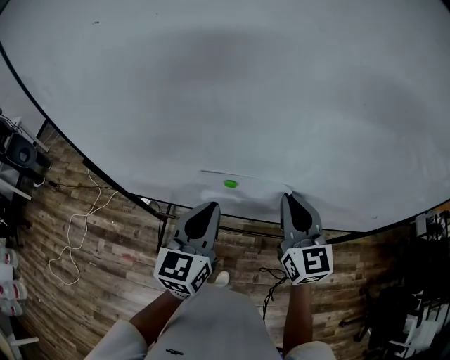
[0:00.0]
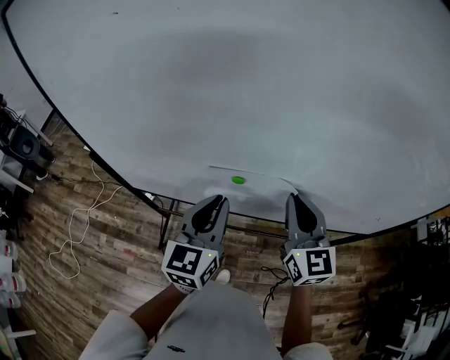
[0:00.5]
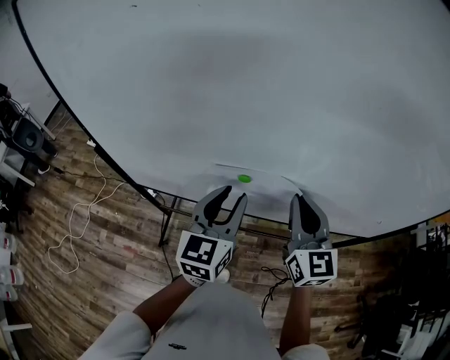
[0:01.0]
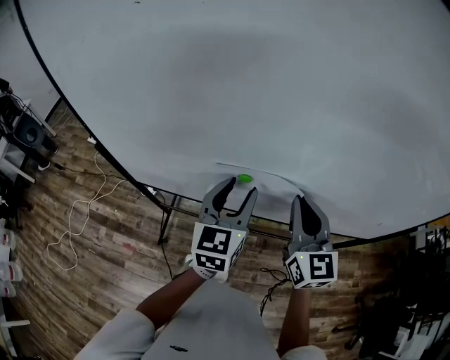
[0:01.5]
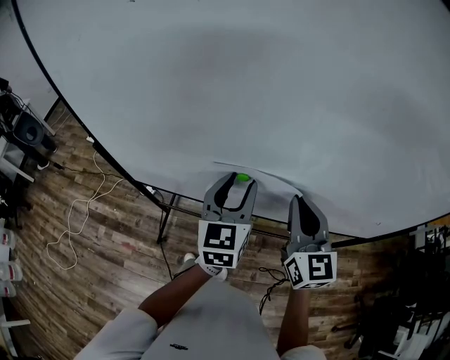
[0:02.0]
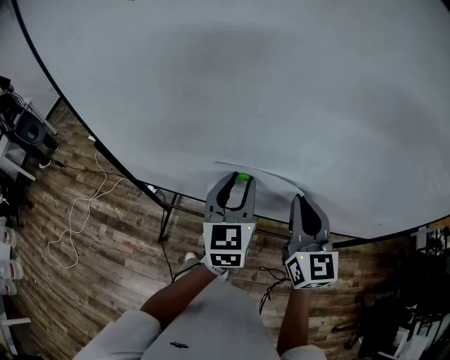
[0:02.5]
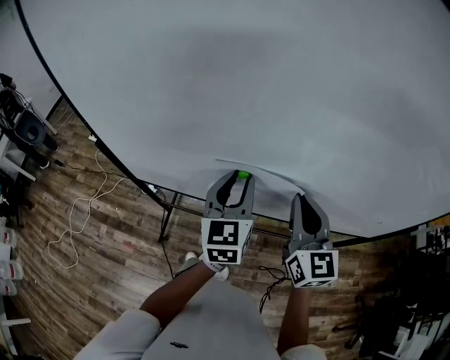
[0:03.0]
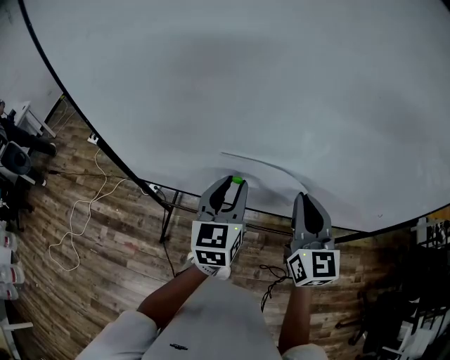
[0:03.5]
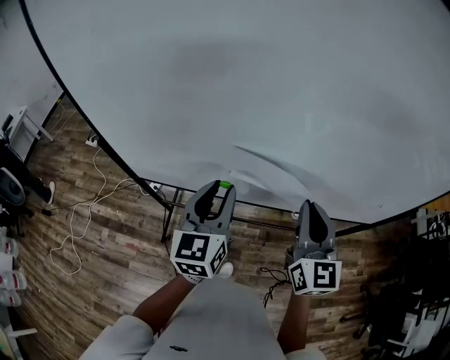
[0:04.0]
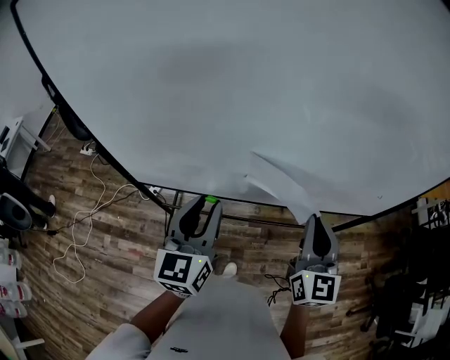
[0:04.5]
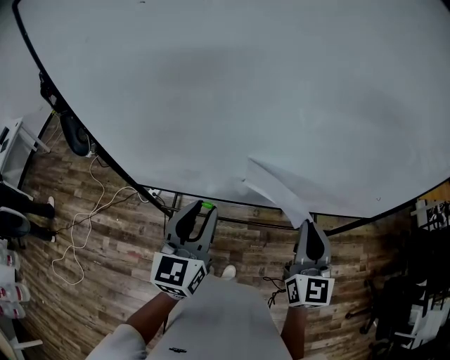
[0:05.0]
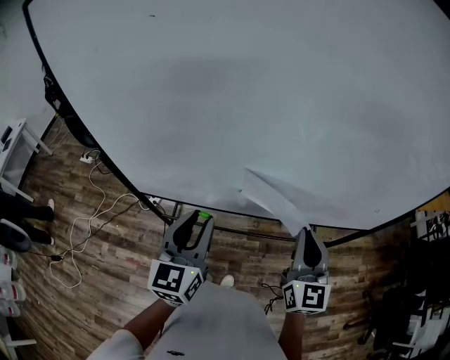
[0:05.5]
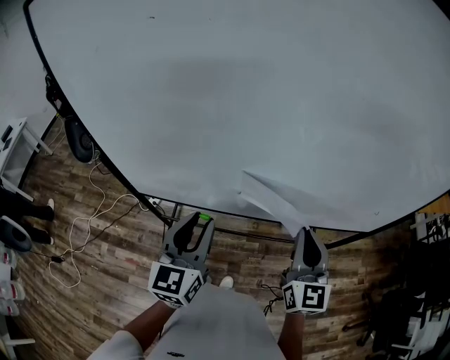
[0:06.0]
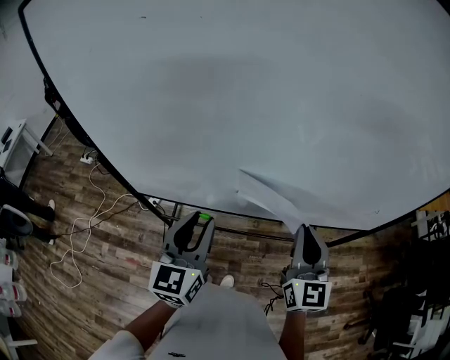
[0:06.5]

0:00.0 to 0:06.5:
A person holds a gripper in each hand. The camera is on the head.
0:00.0 to 0:02.0: The left gripper shifts by approximately 5 cm, and opens up.
0:02.0 to 0:04.5: The left gripper heads backward and to the left, covering about 15 cm, while the right gripper goes roughly 10 cm backward.
0:04.5 to 0:06.5: The grippers stay close to where they were, moving slightly.

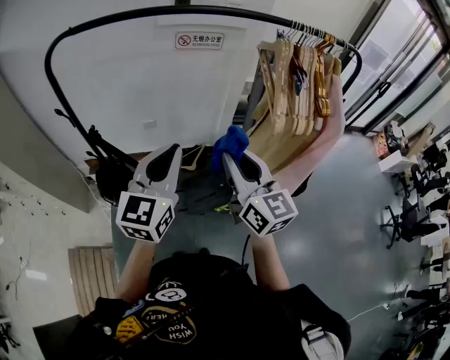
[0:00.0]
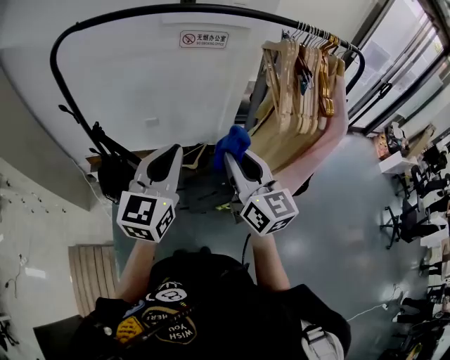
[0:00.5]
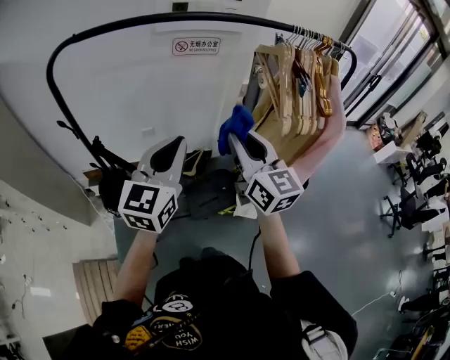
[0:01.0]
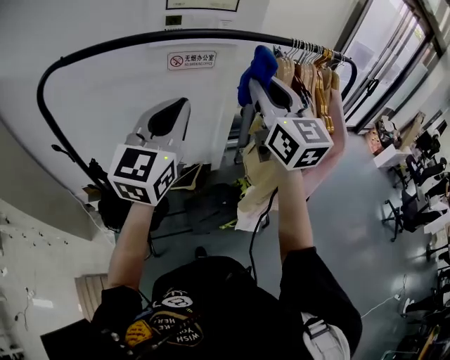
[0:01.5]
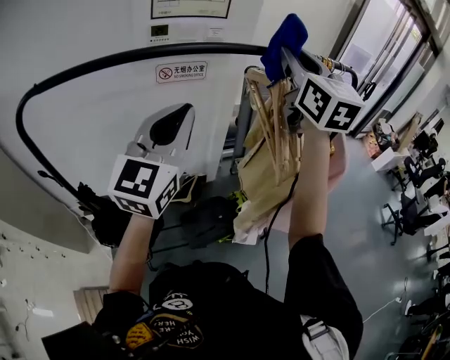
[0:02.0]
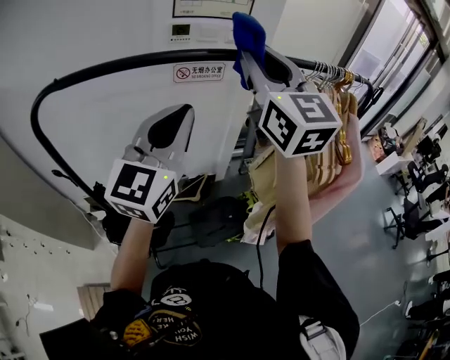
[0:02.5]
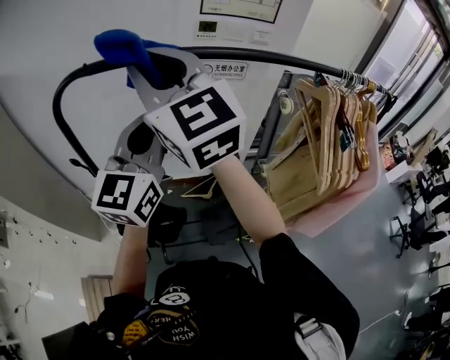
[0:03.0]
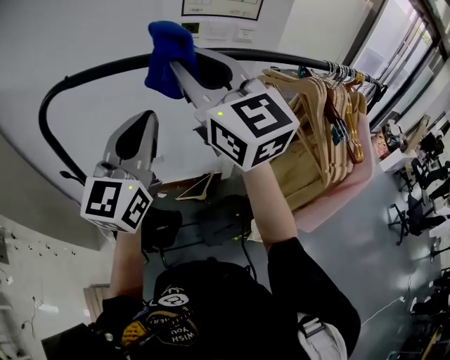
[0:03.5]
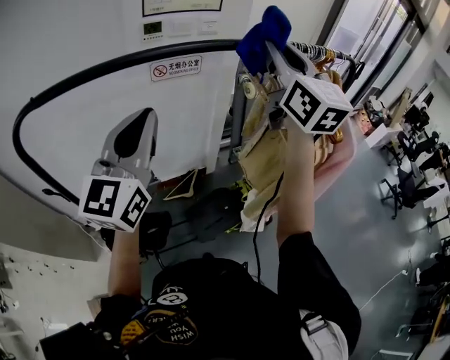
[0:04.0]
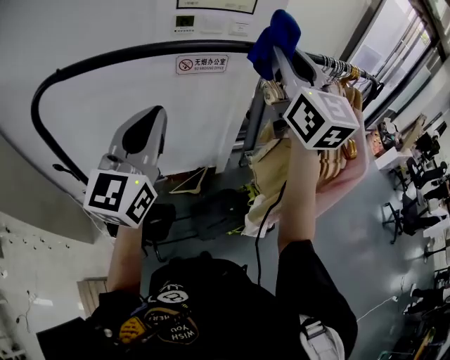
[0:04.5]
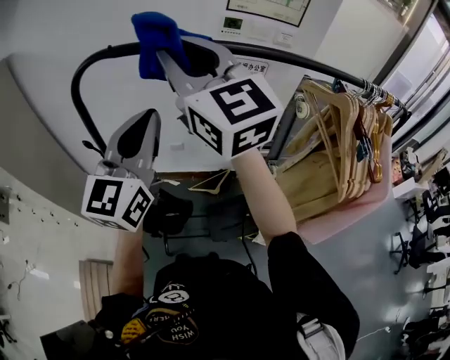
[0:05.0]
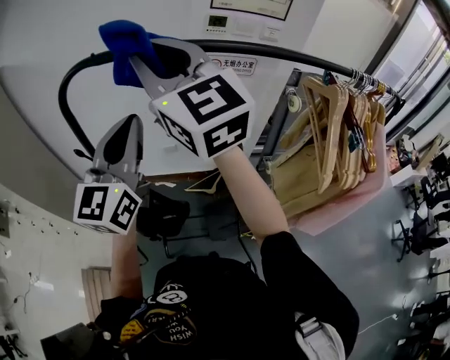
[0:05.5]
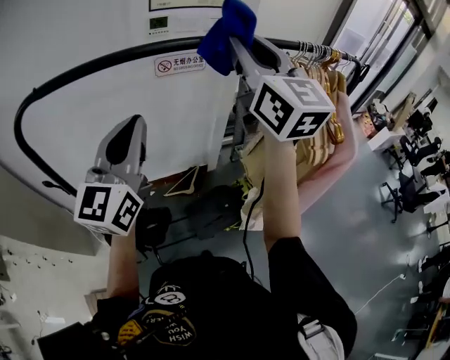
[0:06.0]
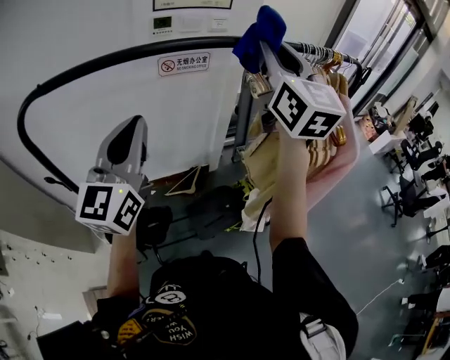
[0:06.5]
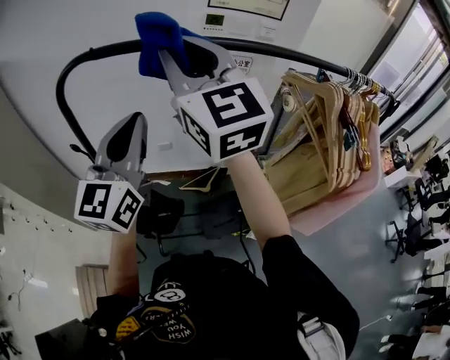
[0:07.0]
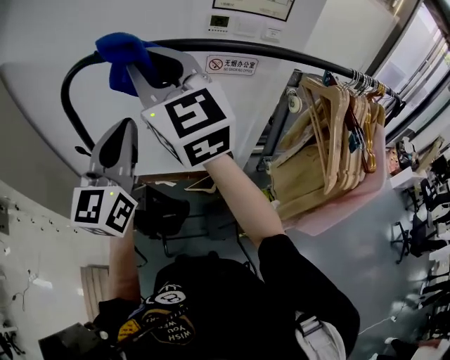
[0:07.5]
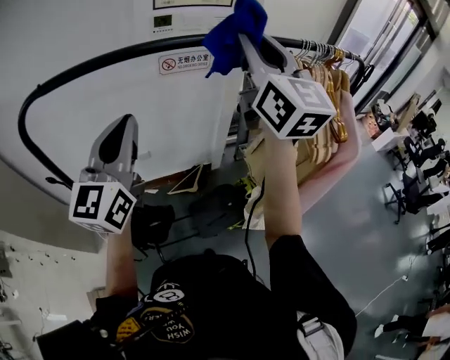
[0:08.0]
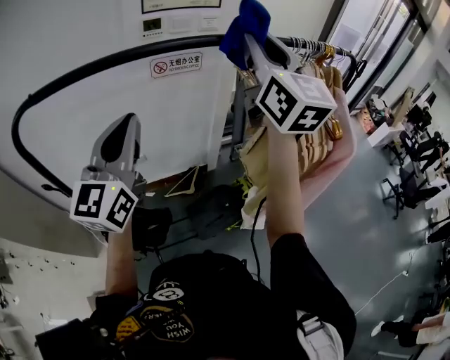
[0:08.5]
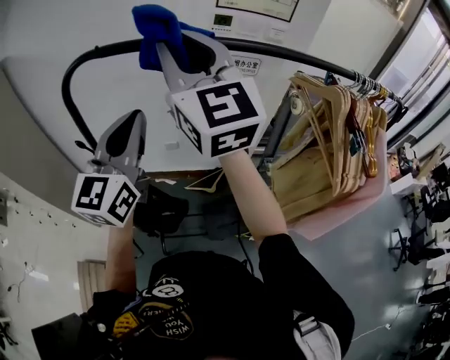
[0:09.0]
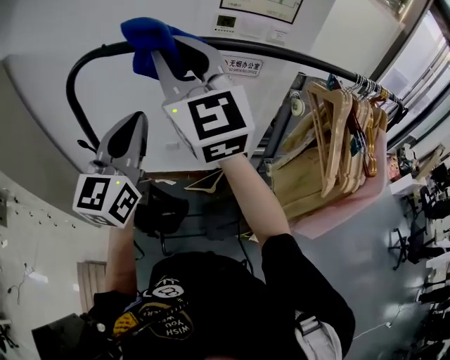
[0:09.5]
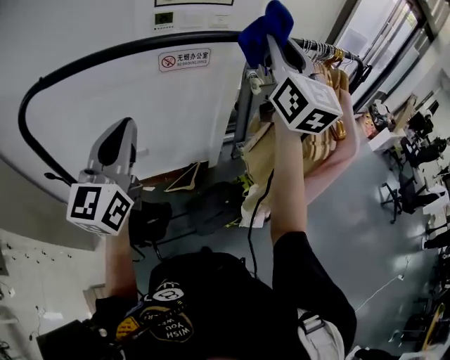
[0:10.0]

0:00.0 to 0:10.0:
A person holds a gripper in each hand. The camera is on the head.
0:00.0 to 0:02.0: The right gripper heads forward and upward, covering about 35 cm, and swivels about 30 degrees. The left gripper moves forward and upward, about 20 cm.
0:02.0 to 0:04.0: The right gripper goes to the left and returns, approximately 40 cm each way; the left gripper travels to the left by roughly 10 cm.
0:08.0 to 0:10.0: The right gripper travels to the left and back again, about 25 cm each way; the left gripper moves roughly 10 cm to the left and comes back.

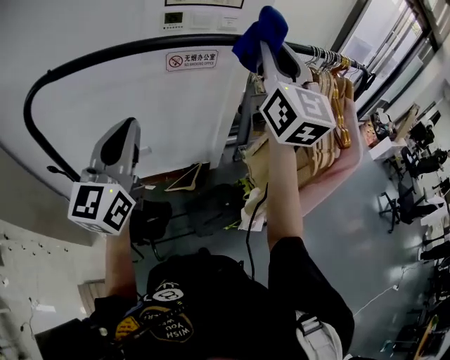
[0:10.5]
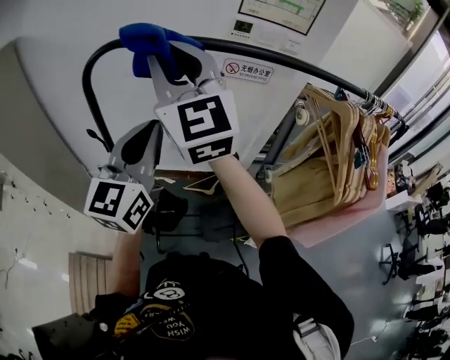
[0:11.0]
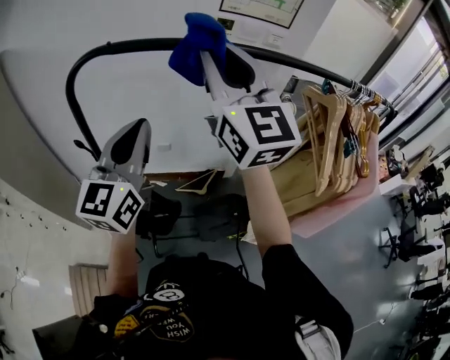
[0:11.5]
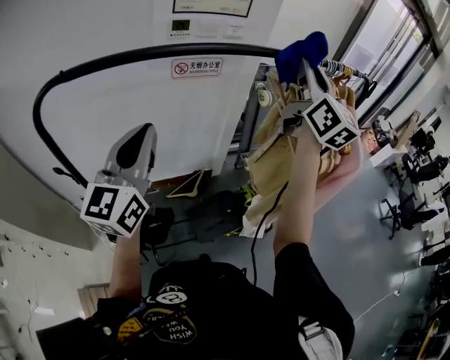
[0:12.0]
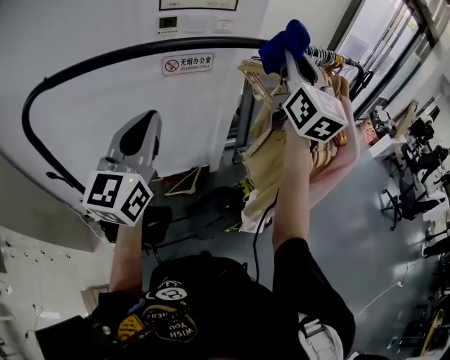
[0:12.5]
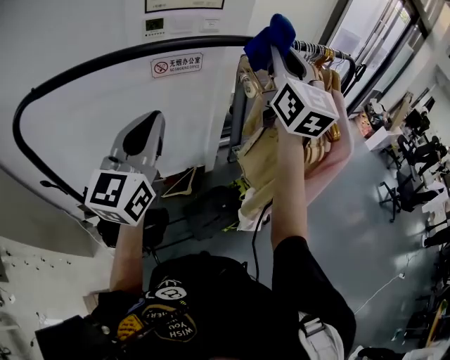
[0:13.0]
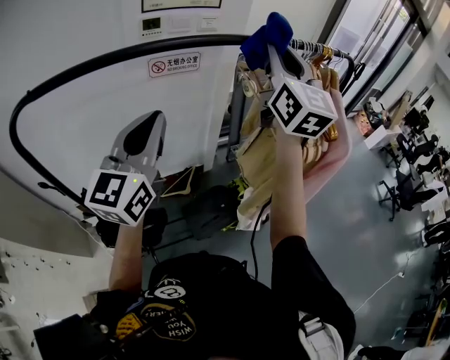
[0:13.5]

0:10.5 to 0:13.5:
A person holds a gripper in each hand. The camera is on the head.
0:12.0 to 0:13.5: The left gripper heads to the right, covering some 10 cm.

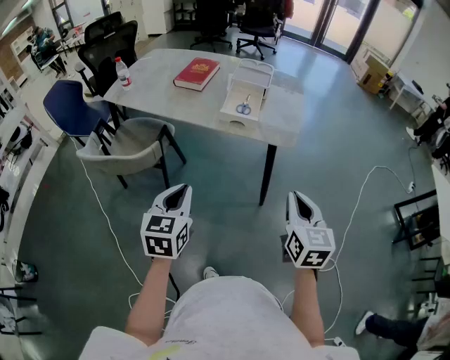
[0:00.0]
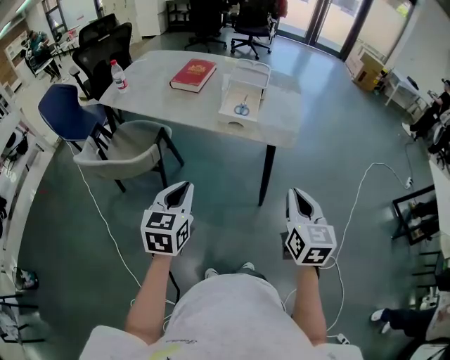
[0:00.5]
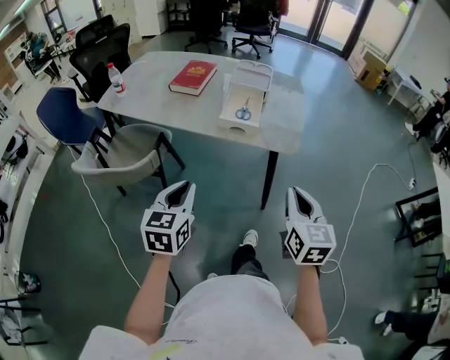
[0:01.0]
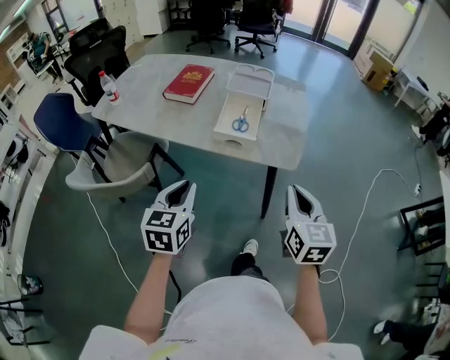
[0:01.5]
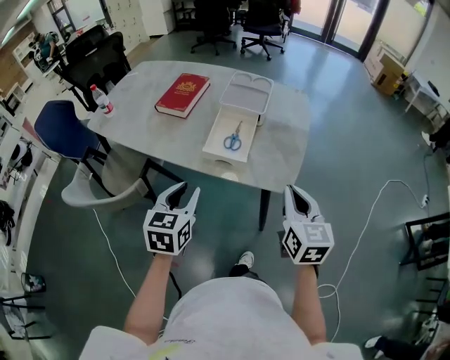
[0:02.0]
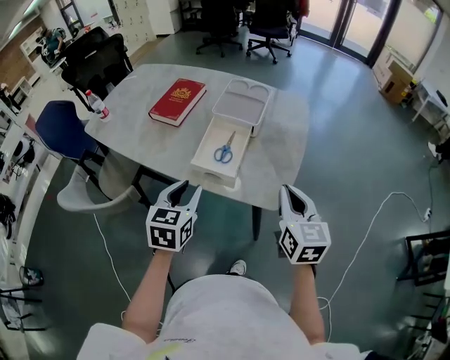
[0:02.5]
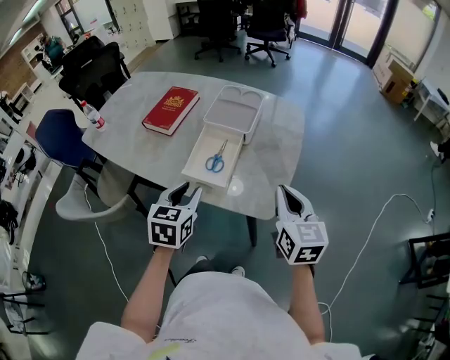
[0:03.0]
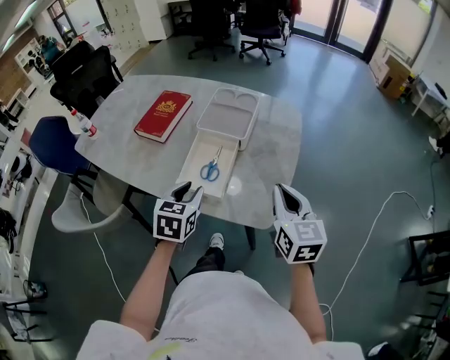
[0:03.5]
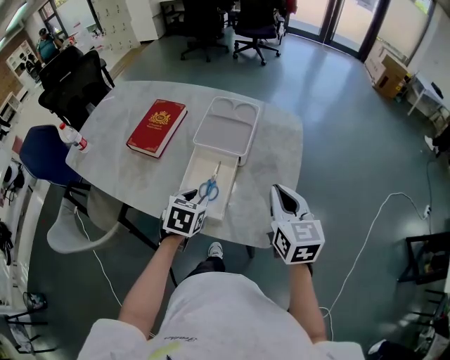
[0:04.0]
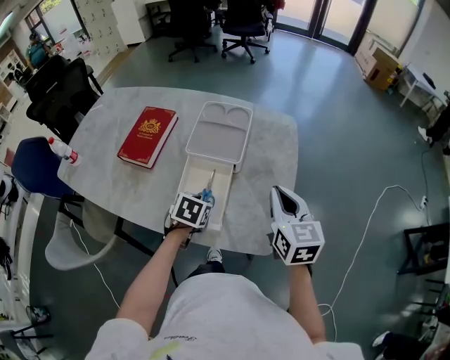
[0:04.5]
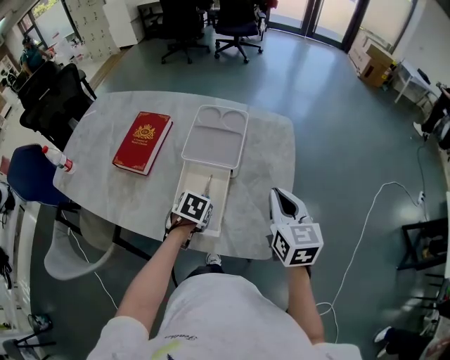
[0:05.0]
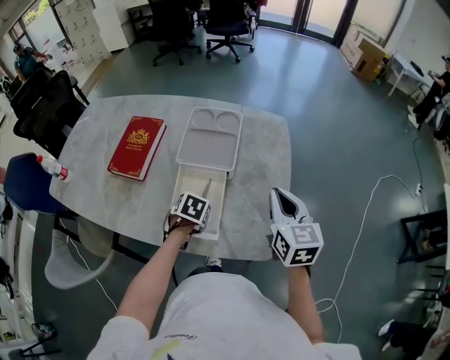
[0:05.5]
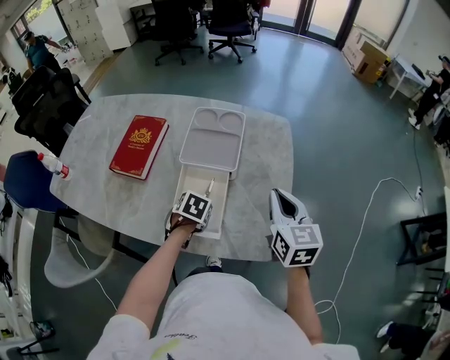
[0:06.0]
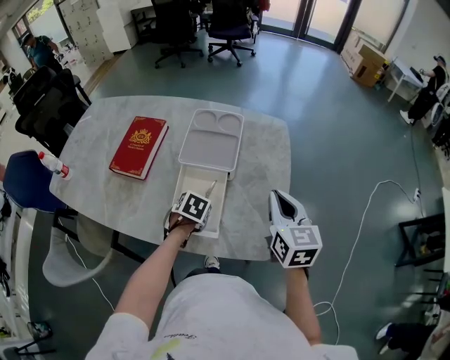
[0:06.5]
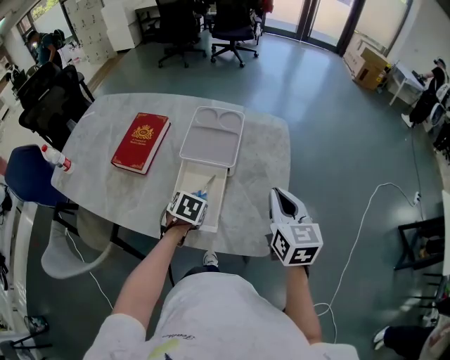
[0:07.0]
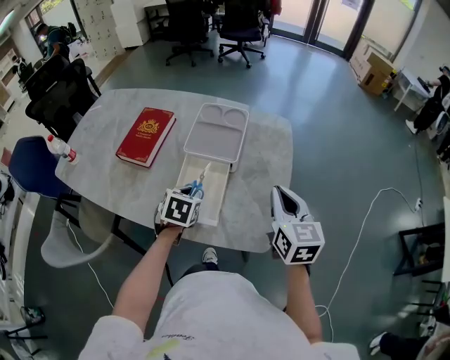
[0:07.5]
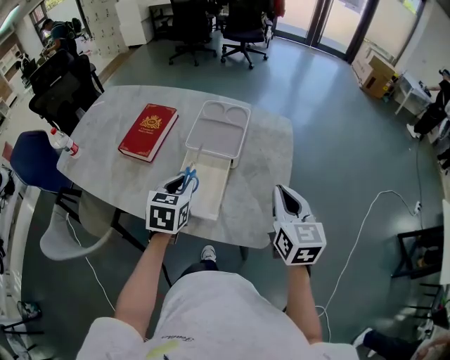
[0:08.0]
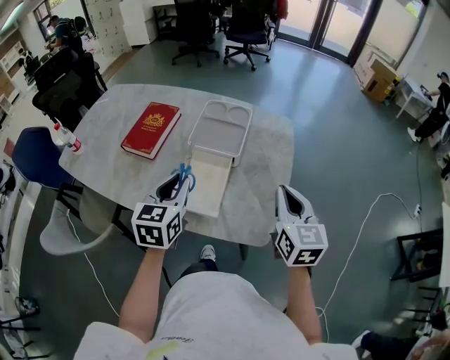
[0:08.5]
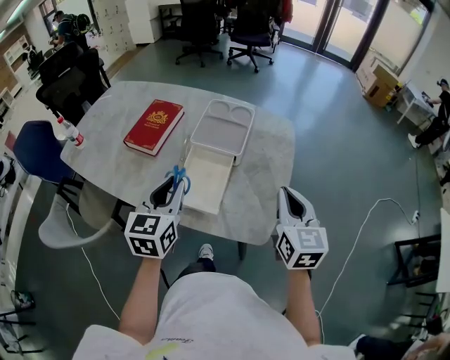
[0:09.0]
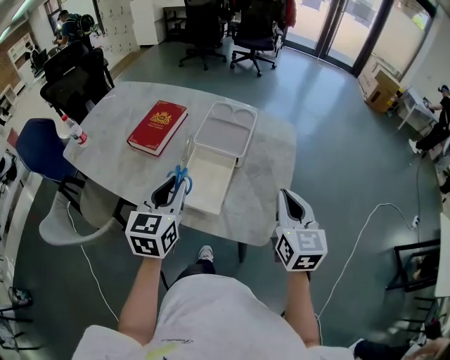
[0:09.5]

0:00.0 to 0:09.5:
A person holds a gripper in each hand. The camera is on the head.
0:00.0 to 0:02.0: Both grippers travel together forward, approximately 25 cm.
0:02.0 to 0:04.0: The right gripper moves forward, some 20 cm; the left gripper shifts approximately 25 cm forward, downward and to the right, and turns by some 20 degrees.
0:04.0 to 0:05.5: The right gripper changes place by some 5 cm; the left gripper heads downward and forward, covering approximately 10 cm, and turns by some 20 degrees.
0:05.5 to 0:07.5: The left gripper travels upward by roughly 10 cm, and turns by some 20 degrees.
0:07.5 to 0:09.5: The right gripper changes place by about 5 cm, while the left gripper is displaced upward and backward by some 20 cm, and tips its fingers upward by some 40 degrees.
